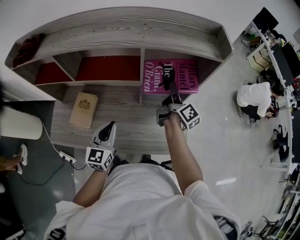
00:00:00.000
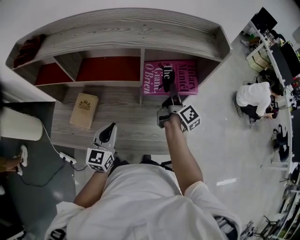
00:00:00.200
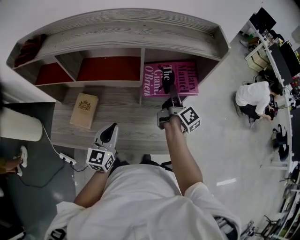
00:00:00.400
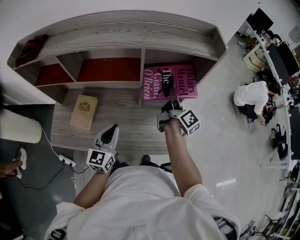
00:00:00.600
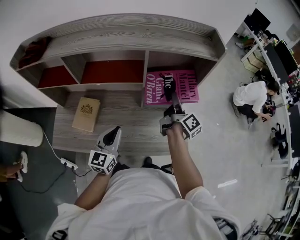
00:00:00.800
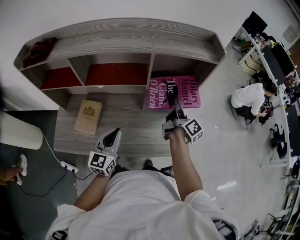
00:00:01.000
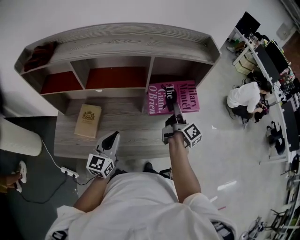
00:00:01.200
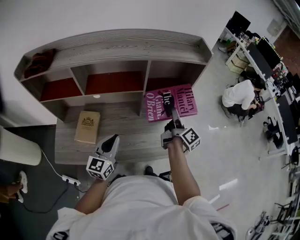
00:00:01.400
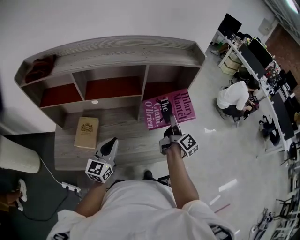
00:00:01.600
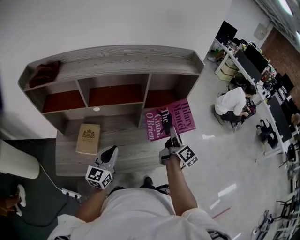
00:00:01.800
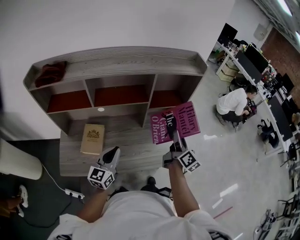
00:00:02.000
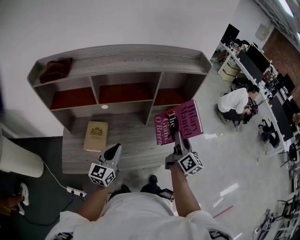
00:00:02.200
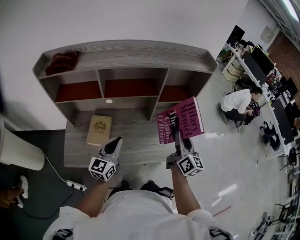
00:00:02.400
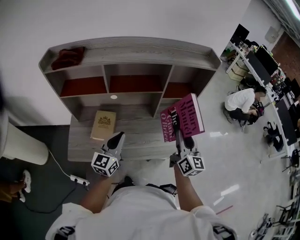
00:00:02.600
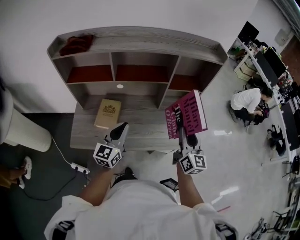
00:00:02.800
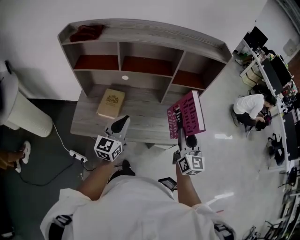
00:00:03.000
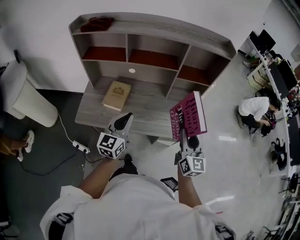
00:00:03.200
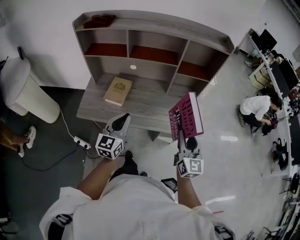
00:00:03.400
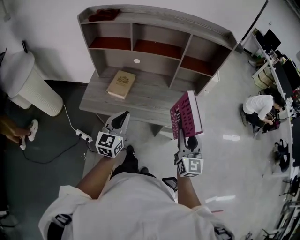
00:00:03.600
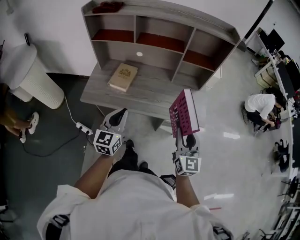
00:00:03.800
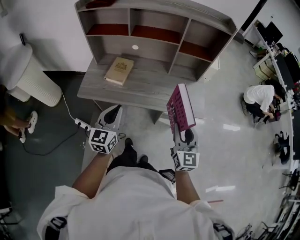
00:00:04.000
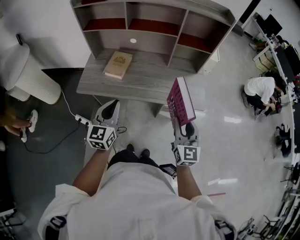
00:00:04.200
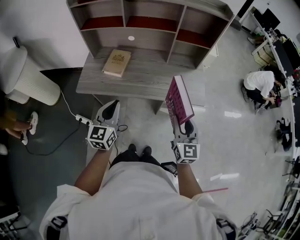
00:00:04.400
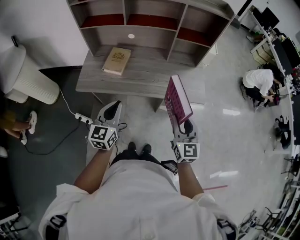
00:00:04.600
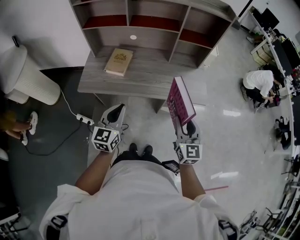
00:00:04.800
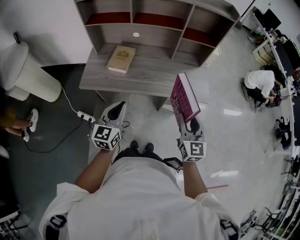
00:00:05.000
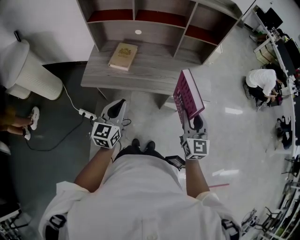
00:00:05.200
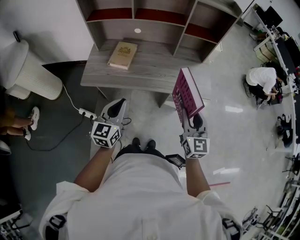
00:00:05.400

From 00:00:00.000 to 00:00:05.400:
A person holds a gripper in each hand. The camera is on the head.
From 00:00:00.000 to 00:00:01.400: The left gripper ends up some 5 cm from where it was, while the right gripper heads backward, covering about 10 cm.
From 00:00:01.400 to 00:00:02.800: The right gripper shifts about 20 cm backward, and twists about 50 degrees counterclockwise, seen from behind, while the left gripper moves backward and to the left, about 10 cm.
From 00:00:02.800 to 00:00:04.000: The two grippers go approximately 20 cm backward.
From 00:00:04.000 to 00:00:05.400: The left gripper changes place by about 5 cm.

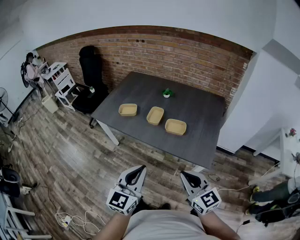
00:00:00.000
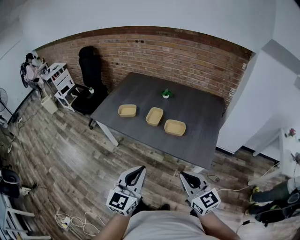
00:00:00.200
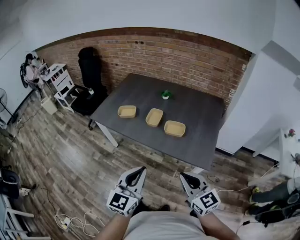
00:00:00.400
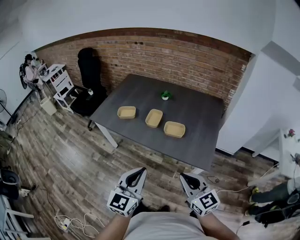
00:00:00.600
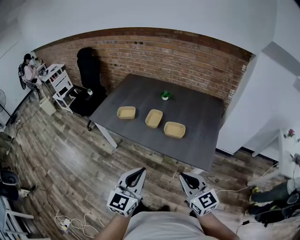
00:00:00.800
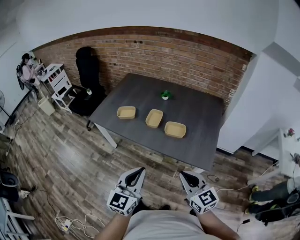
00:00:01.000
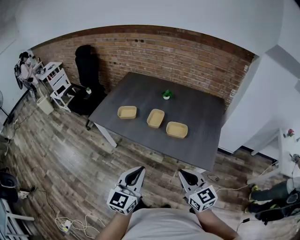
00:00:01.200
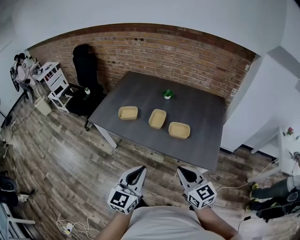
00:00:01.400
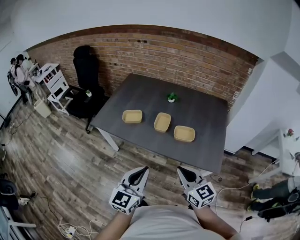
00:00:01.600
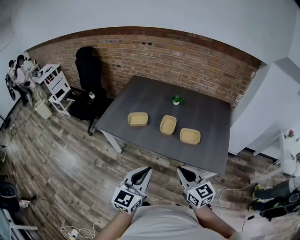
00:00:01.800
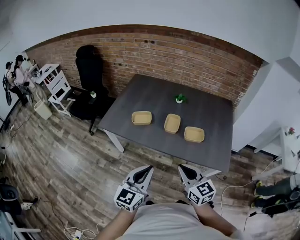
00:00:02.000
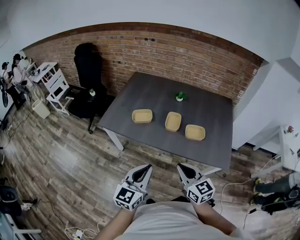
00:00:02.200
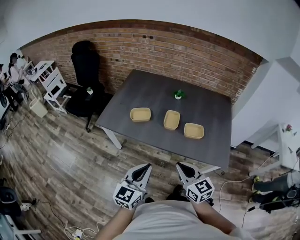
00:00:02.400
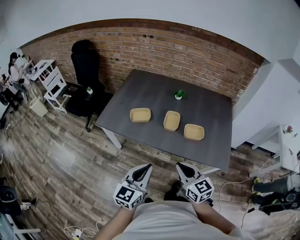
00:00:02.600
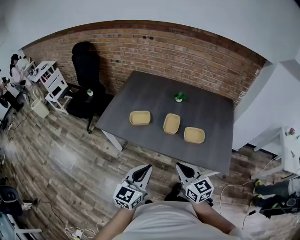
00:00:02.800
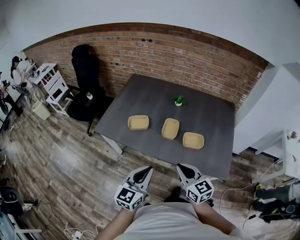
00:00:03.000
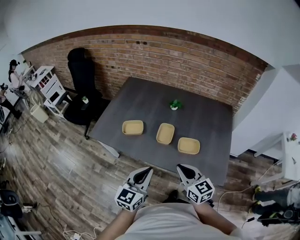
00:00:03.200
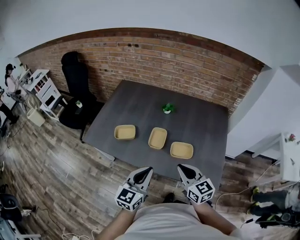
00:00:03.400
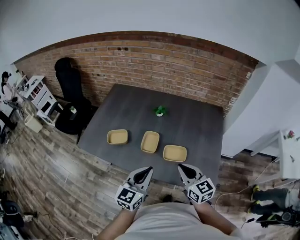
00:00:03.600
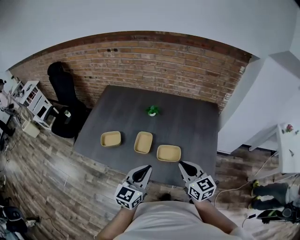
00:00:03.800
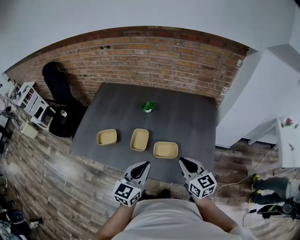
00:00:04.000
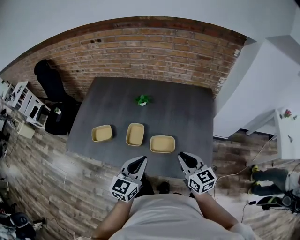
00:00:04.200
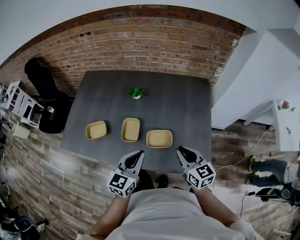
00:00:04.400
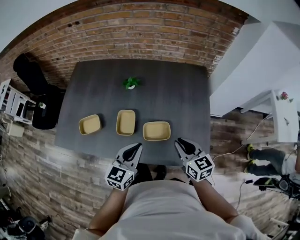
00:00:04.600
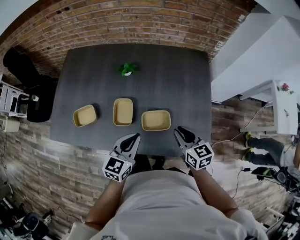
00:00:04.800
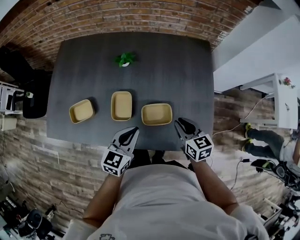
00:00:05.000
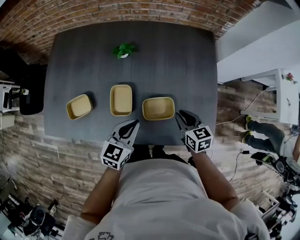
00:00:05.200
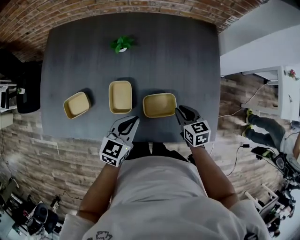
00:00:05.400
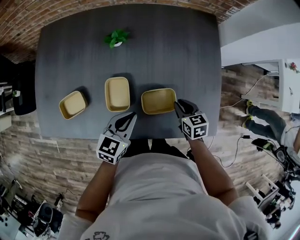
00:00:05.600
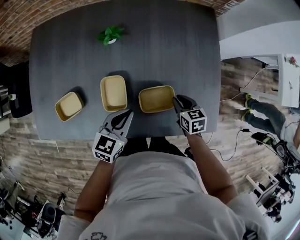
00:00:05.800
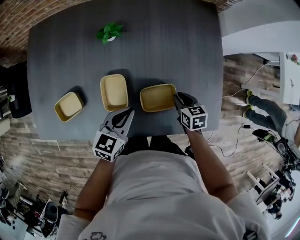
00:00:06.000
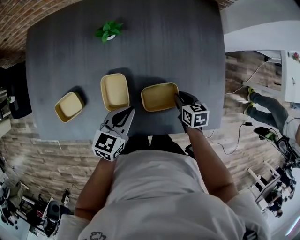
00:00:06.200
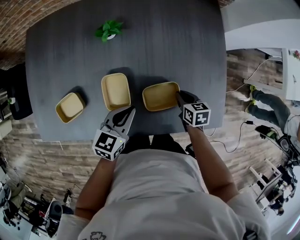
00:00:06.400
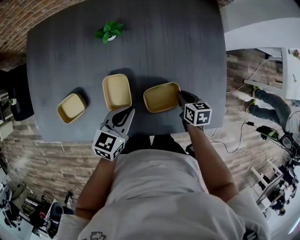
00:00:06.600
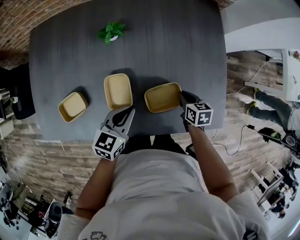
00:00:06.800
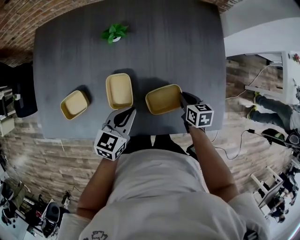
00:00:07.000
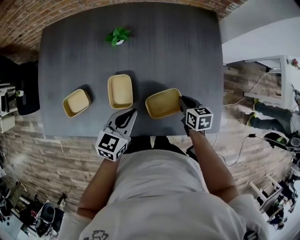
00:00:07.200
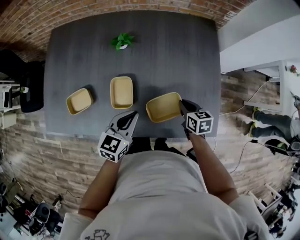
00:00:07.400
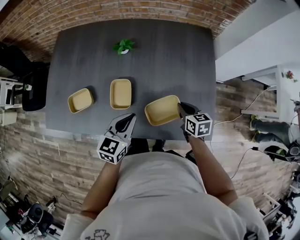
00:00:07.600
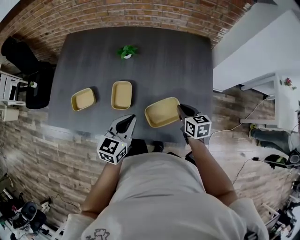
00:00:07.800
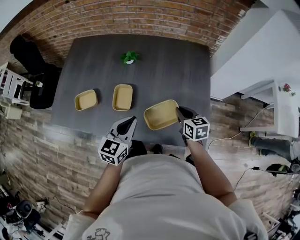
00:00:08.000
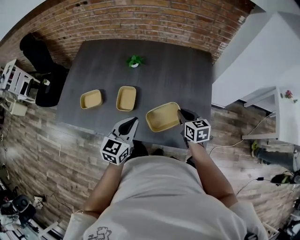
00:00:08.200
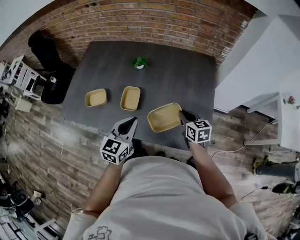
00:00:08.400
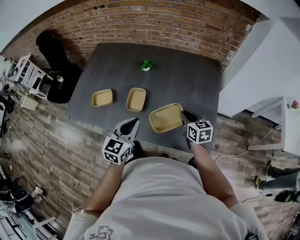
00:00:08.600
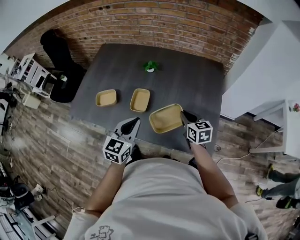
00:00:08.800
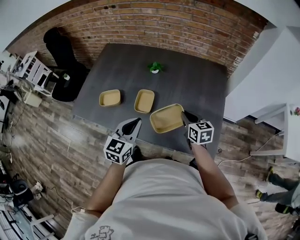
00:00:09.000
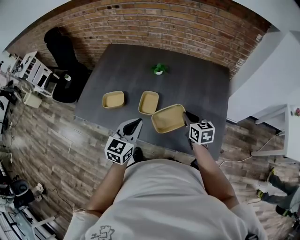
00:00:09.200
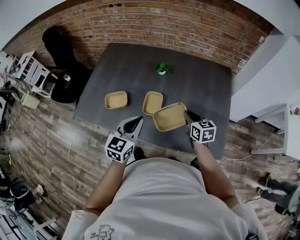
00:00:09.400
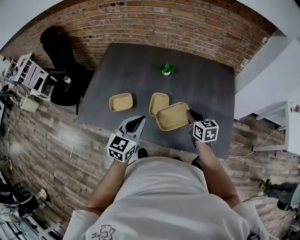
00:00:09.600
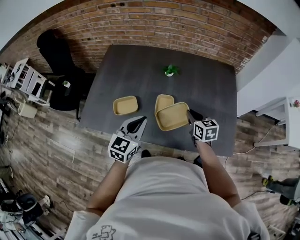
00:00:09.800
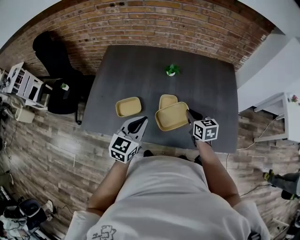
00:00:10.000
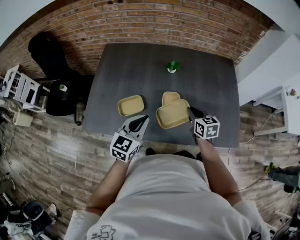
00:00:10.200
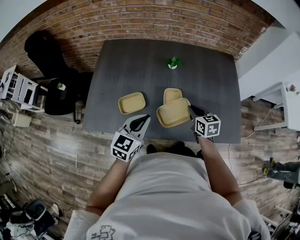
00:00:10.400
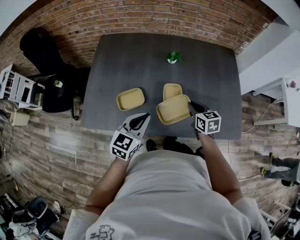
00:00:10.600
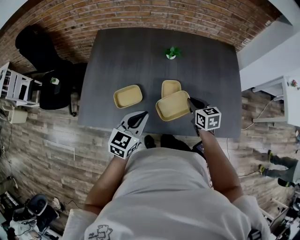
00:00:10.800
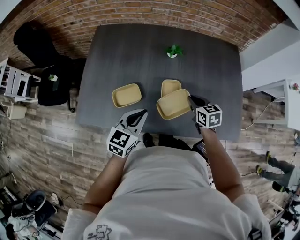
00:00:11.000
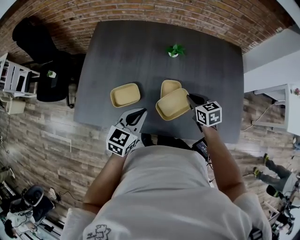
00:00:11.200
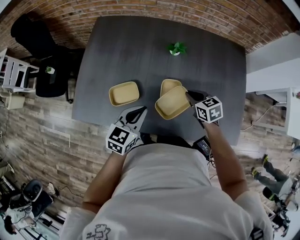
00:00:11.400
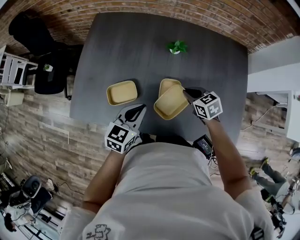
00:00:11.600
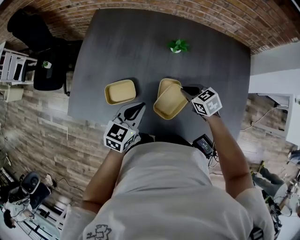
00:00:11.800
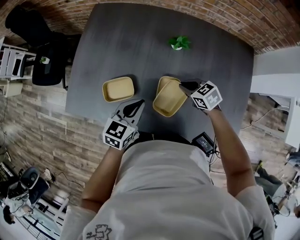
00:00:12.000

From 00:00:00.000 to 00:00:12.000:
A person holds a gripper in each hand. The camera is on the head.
From 00:00:00.000 to 00:00:01.600: The two grippers go roughly 15 cm to the left and forward.
From 00:00:01.600 to 00:00:03.000: Both grippers travel together forward and to the left, some 10 cm.
From 00:00:03.000 to 00:00:04.400: The left gripper travels forward and to the right by approximately 25 cm. Meanwhile the right gripper moves to the right and forward, roughly 25 cm.
From 00:00:04.400 to 00:00:06.000: The left gripper shifts roughly 20 cm downward and forward, and rotates approximately 30 degrees. The right gripper moves downward, approximately 25 cm, and tips its fingers downward by about 30 degrees.
From 00:00:06.000 to 00:00:07.600: The grippers both shift upward by some 5 cm.
From 00:00:07.600 to 00:00:09.000: The left gripper goes approximately 10 cm upward and backward. Meanwhile the right gripper moves upward, roughly 10 cm, and changes its angle by some 20 degrees.
From 00:00:09.000 to 00:00:10.400: Both grippers move to the left, roughly 20 cm.
From 00:00:10.400 to 00:00:12.000: The left gripper heads downward and forward, covering about 15 cm. Meanwhile the right gripper goes about 15 cm forward and downward, and turns by approximately 40 degrees.

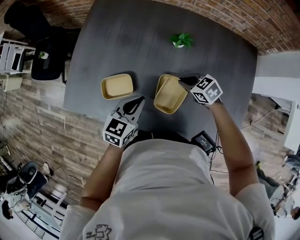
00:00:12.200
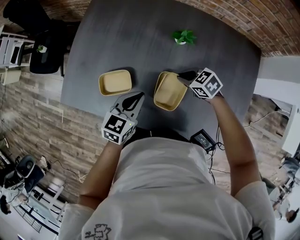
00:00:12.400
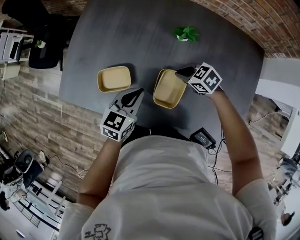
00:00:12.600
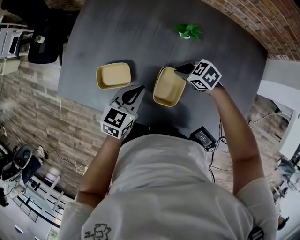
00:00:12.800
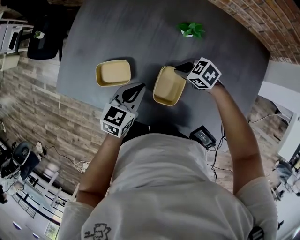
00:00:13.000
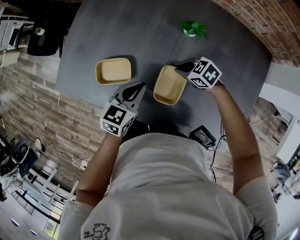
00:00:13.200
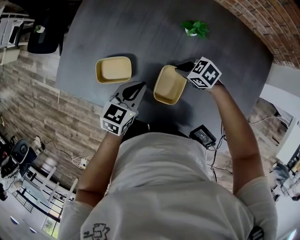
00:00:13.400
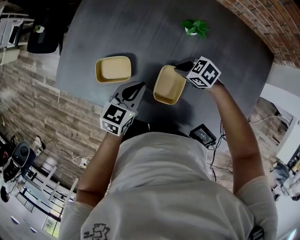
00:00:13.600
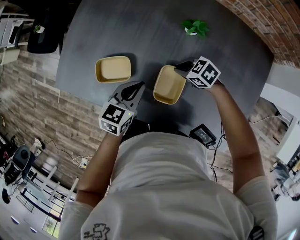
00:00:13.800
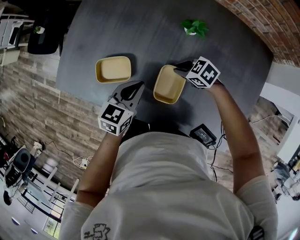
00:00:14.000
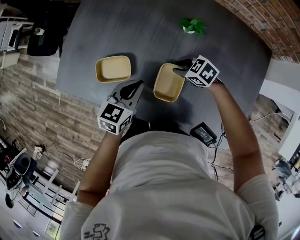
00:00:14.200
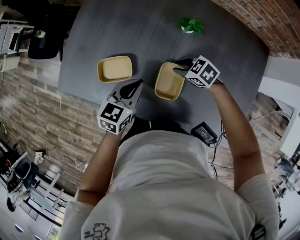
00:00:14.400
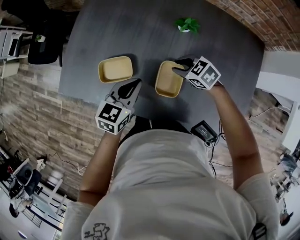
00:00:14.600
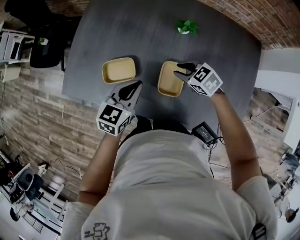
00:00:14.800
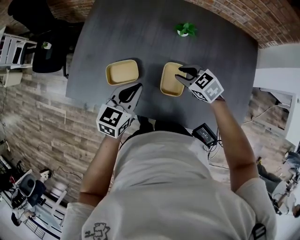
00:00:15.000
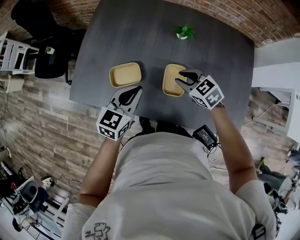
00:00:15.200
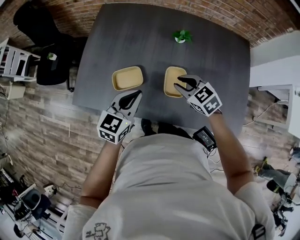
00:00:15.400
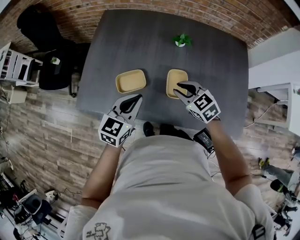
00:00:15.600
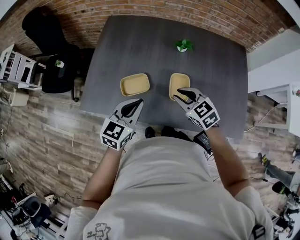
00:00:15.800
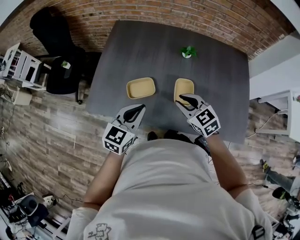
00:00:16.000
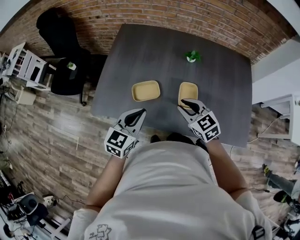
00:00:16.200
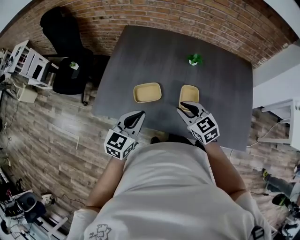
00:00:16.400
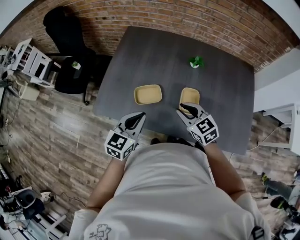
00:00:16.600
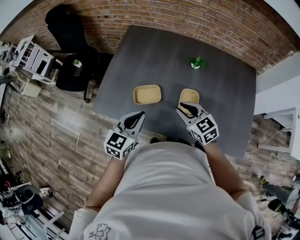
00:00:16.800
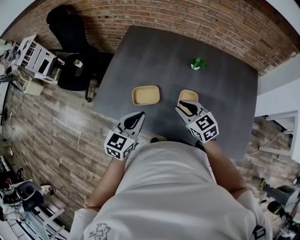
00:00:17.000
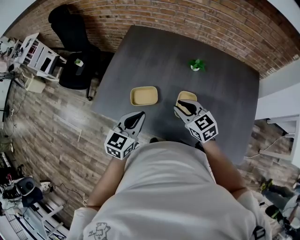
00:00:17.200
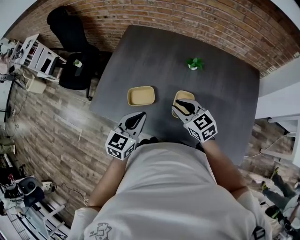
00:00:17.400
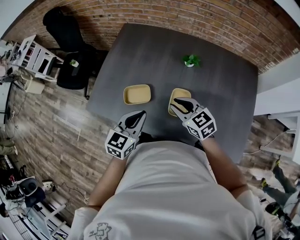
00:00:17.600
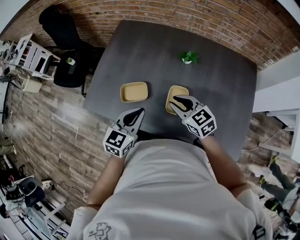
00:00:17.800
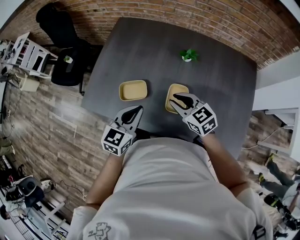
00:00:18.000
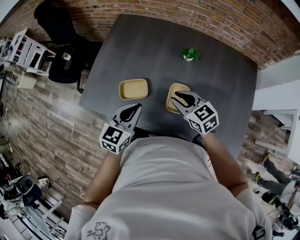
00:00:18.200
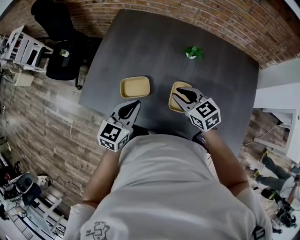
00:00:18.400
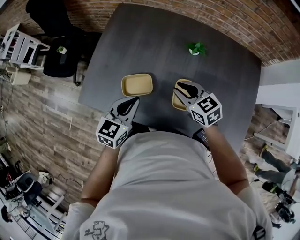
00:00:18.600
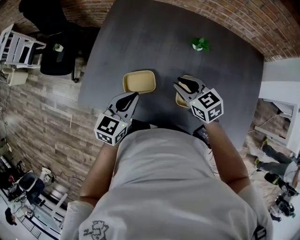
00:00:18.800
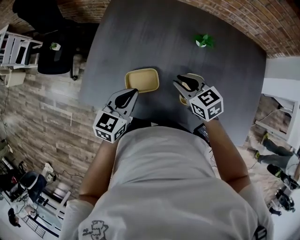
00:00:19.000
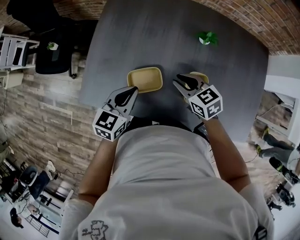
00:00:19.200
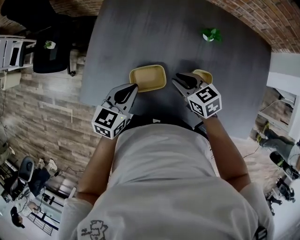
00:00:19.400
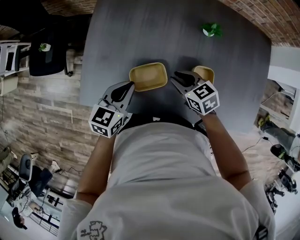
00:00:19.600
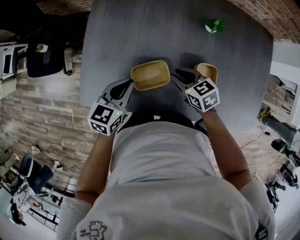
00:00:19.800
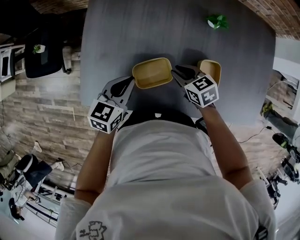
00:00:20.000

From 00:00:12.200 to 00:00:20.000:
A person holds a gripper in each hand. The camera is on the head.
From 00:00:12.200 to 00:00:13.800: The right gripper heads downward, covering roughly 5 cm, and turns by some 20 degrees.
From 00:00:13.800 to 00:00:15.400: The two grippers go some 15 cm upward. The right gripper turns by approximately 30 degrees.
From 00:00:15.400 to 00:00:16.800: The right gripper travels to the left and upward by approximately 10 cm. Meanwhile the left gripper travels to the left by about 5 cm.
From 00:00:16.800 to 00:00:18.400: The right gripper goes some 5 cm forward. The left gripper changes place by some 5 cm.
From 00:00:18.400 to 00:00:20.000: The left gripper travels to the left, downward and forward by about 20 cm; the right gripper heads downward and to the left, covering approximately 20 cm, and turns by some 30 degrees.
